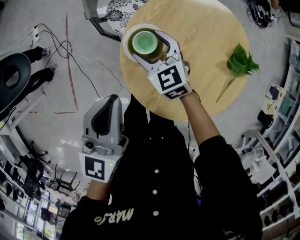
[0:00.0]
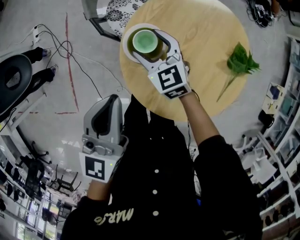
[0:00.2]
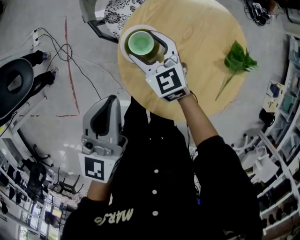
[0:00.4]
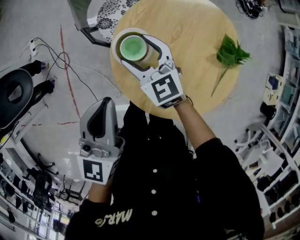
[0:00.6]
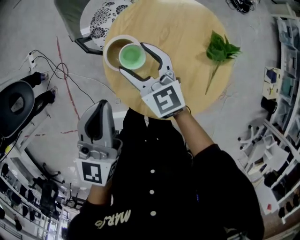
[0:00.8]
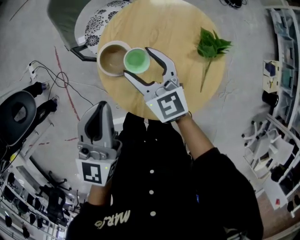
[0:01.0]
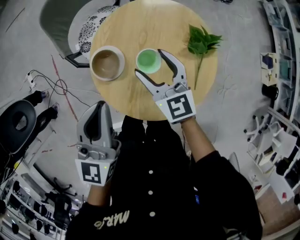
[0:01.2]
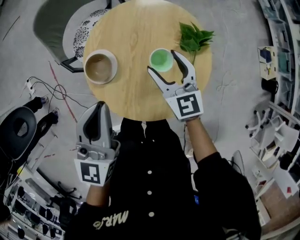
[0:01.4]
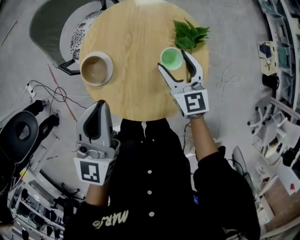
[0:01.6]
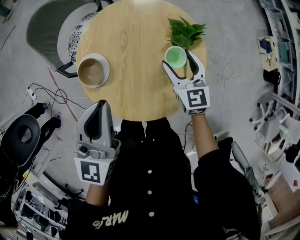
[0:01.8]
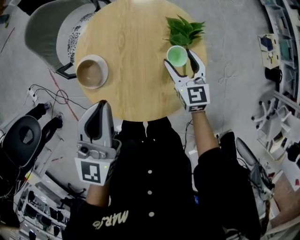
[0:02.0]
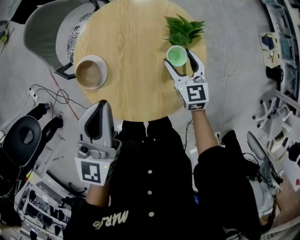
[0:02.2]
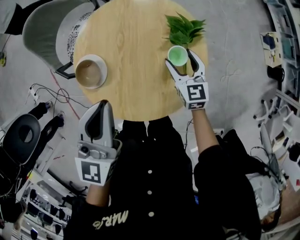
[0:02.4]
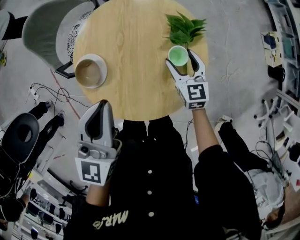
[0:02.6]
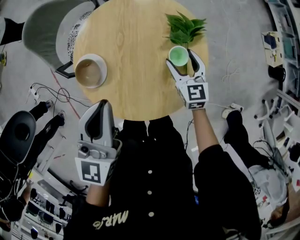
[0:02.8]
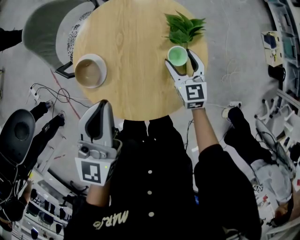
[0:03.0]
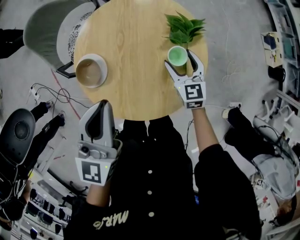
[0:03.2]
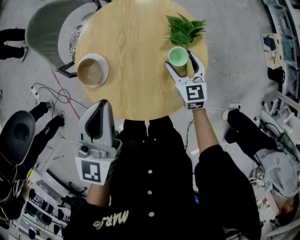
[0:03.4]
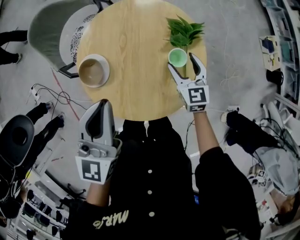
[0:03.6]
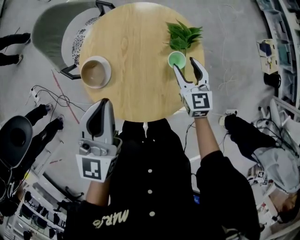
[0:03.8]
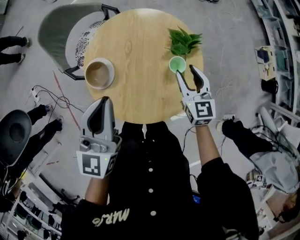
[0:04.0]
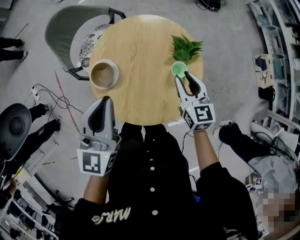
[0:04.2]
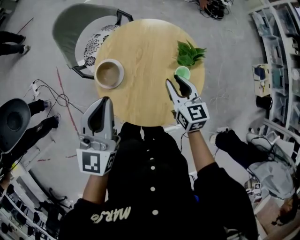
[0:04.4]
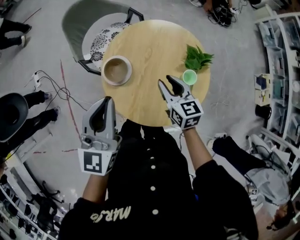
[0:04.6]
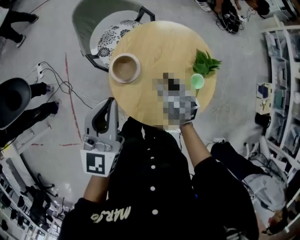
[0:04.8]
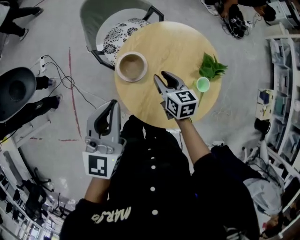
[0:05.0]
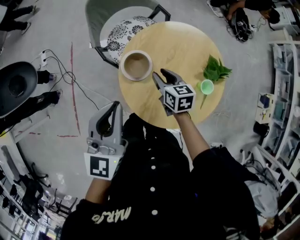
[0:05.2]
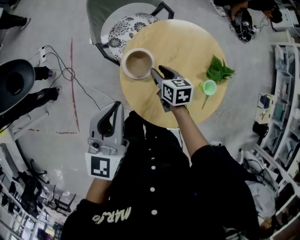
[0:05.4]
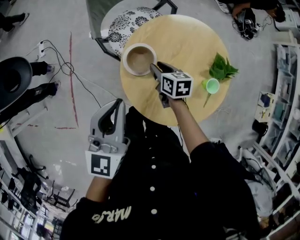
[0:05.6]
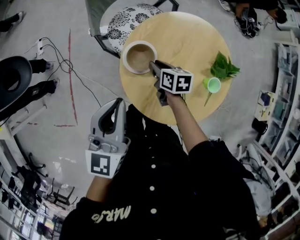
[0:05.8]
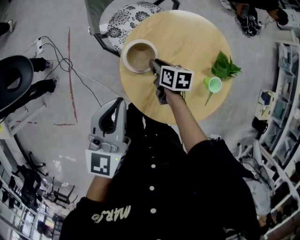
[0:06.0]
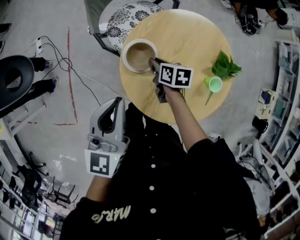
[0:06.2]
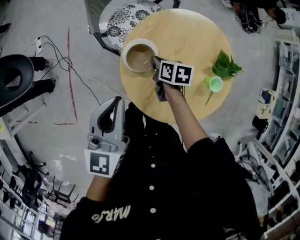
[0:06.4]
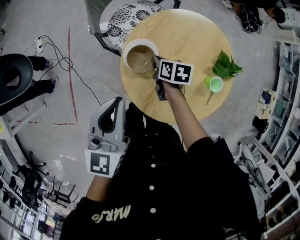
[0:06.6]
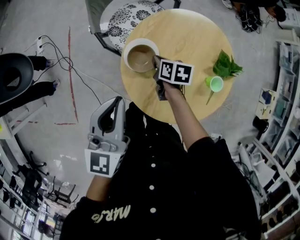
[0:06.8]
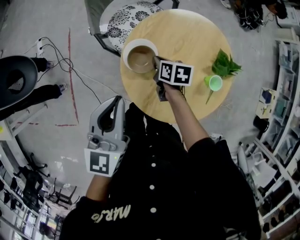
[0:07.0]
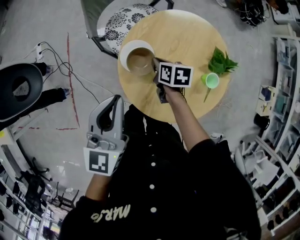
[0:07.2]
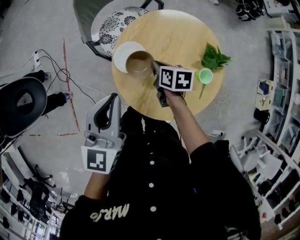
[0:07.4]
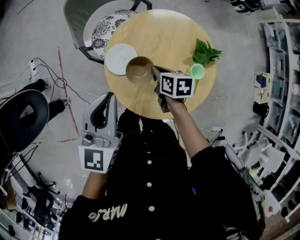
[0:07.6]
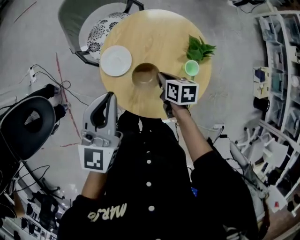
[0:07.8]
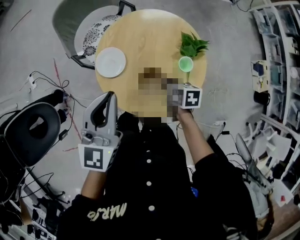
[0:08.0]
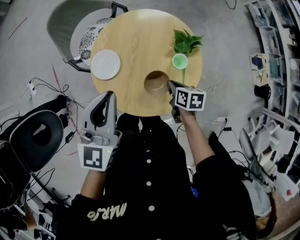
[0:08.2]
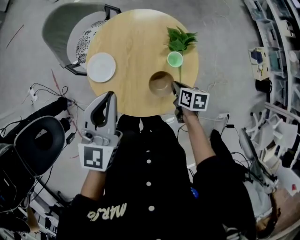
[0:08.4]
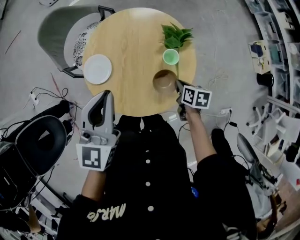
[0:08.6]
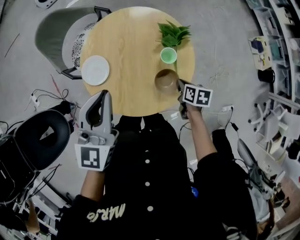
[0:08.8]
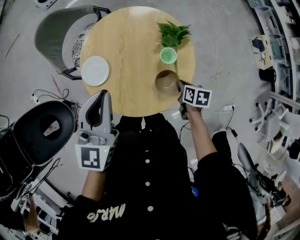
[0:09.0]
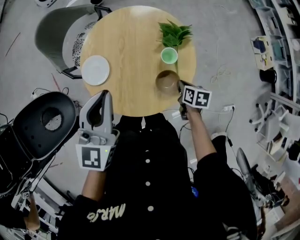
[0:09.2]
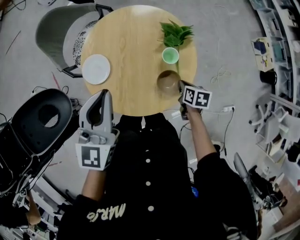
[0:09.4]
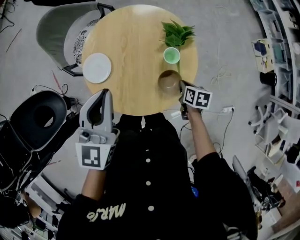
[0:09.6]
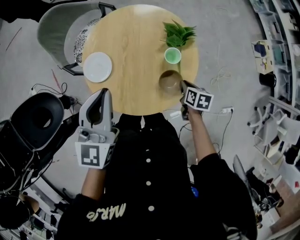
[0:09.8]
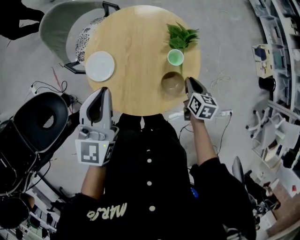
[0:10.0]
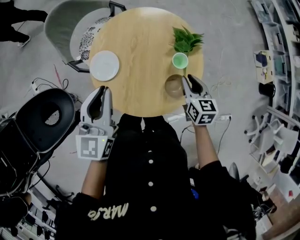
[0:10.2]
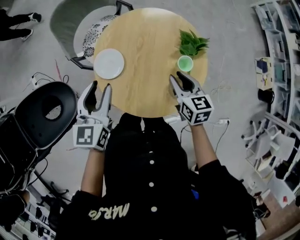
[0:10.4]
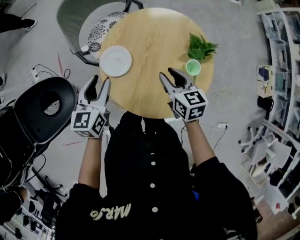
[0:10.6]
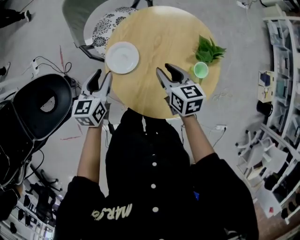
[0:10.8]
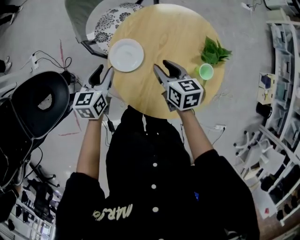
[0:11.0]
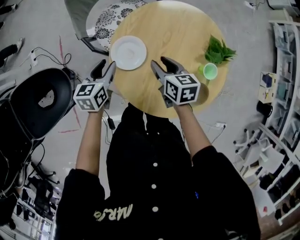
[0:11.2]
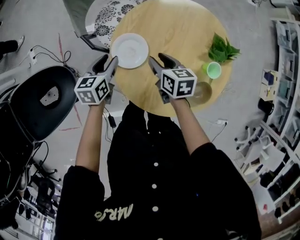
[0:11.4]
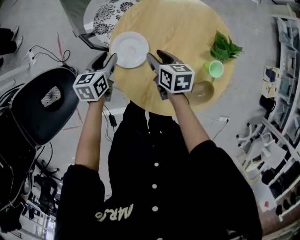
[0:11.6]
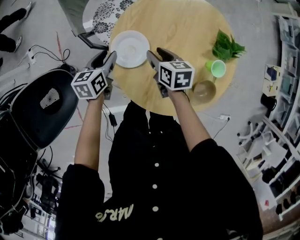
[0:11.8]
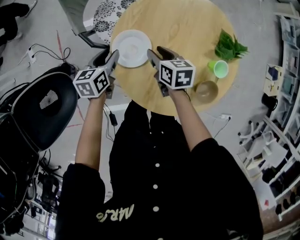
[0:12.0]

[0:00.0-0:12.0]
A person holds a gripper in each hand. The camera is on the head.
0:00.0 to 0:01.6: The right gripper moves roughly 35 cm, and changes its angle by some 40 degrees. Meanwhile the left gripper ends up some 15 cm from where it was.
0:01.6 to 0:03.0: The right gripper goes approximately 10 cm downward and to the right.
0:03.0 to 0:04.4: The right gripper heads upward and to the left, covering about 15 cm, and closes, while the left gripper travels to the left and upward by about 10 cm.
0:04.4 to 0:06.0: The left gripper heads to the left and downward, covering about 15 cm. The right gripper heads to the left, downward and forward, covering some 30 cm, and changes its angle by roughly 40 degrees.
0:06.0 to 0:07.6: The left gripper moves about 5 cm; the right gripper shifts about 10 cm to the right, upward and backward.
0:07.6 to 0:09.0: The left gripper heads to the right, covering about 15 cm, while the right gripper shifts roughly 30 cm to the right and backward, and changes its angle by approximately 30 degrees.
0:09.0 to 0:10.4: The right gripper is displaced to the left, upward and forward by some 20 cm, and changes its angle by about 40 degrees. The left gripper is displaced to the left and downward by approximately 15 cm, turns by roughly 20 degrees, and opens.
0:10.4 to 0:12.0: The right gripper goes roughly 25 cm to the left, downward and forward, and turns by some 20 degrees, while the left gripper heads downward, covering some 25 cm, and changes its angle by roughly 30 degrees.

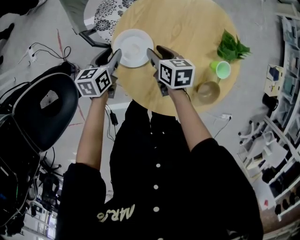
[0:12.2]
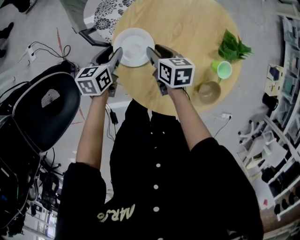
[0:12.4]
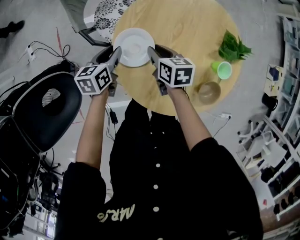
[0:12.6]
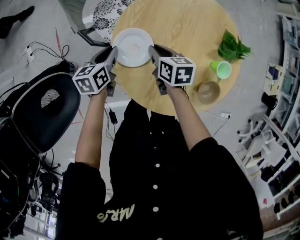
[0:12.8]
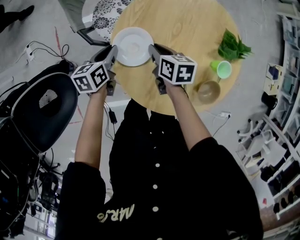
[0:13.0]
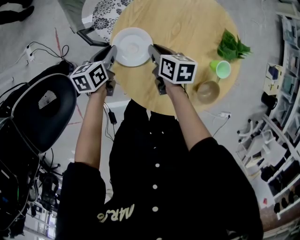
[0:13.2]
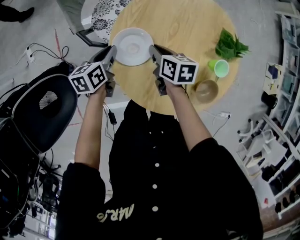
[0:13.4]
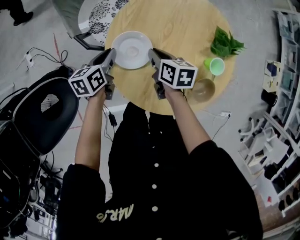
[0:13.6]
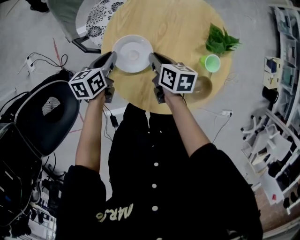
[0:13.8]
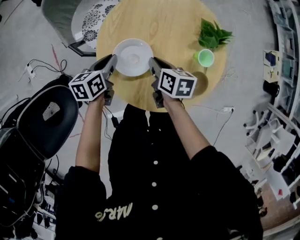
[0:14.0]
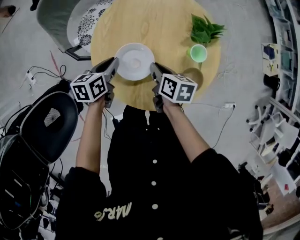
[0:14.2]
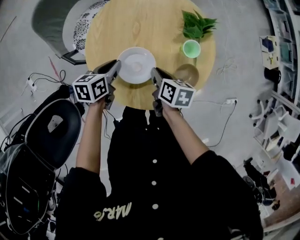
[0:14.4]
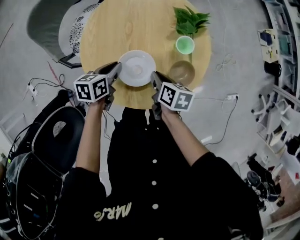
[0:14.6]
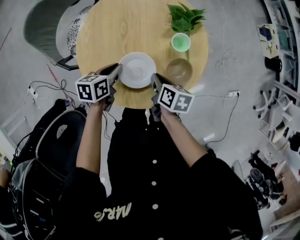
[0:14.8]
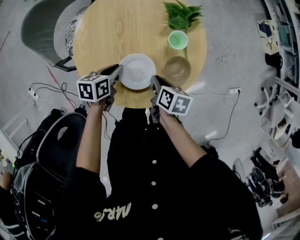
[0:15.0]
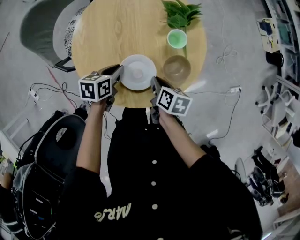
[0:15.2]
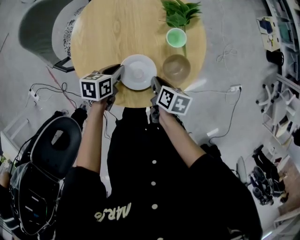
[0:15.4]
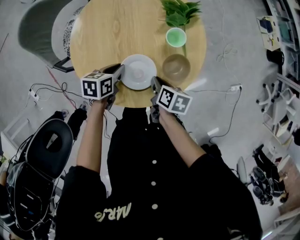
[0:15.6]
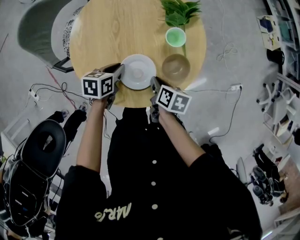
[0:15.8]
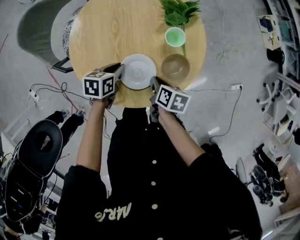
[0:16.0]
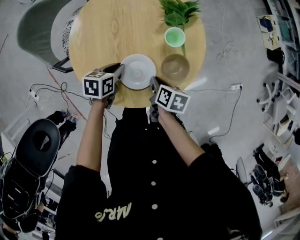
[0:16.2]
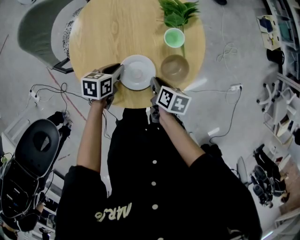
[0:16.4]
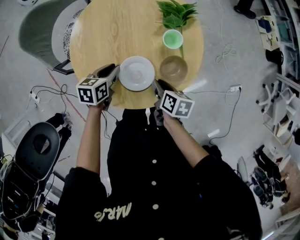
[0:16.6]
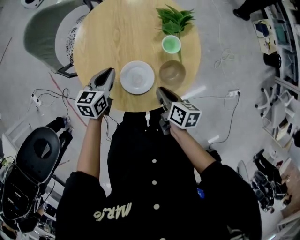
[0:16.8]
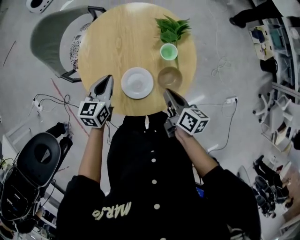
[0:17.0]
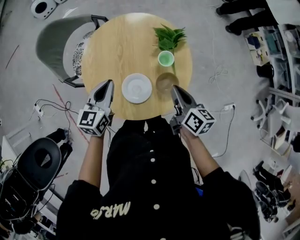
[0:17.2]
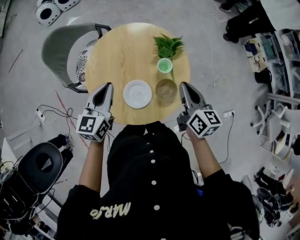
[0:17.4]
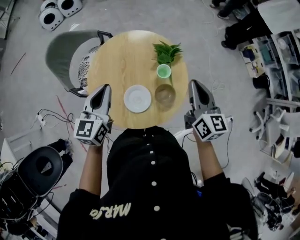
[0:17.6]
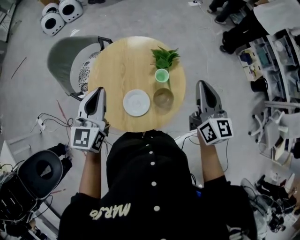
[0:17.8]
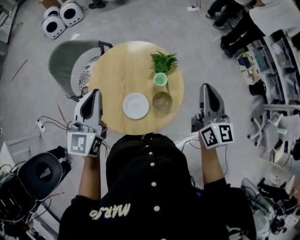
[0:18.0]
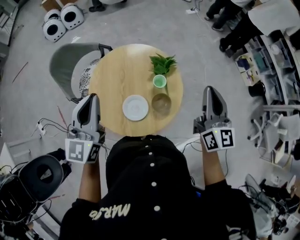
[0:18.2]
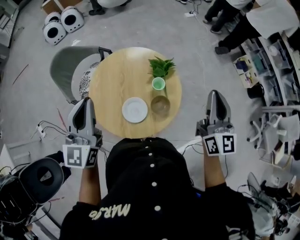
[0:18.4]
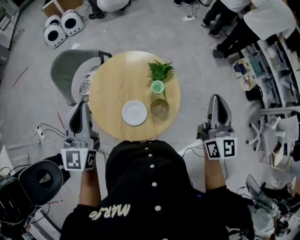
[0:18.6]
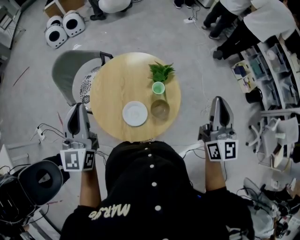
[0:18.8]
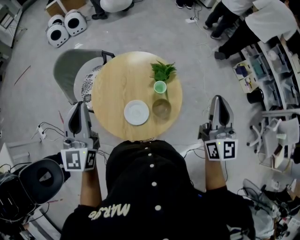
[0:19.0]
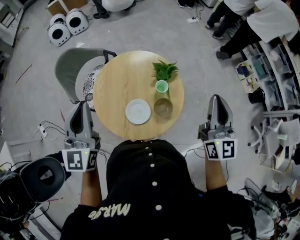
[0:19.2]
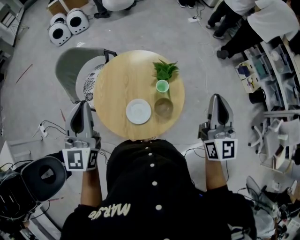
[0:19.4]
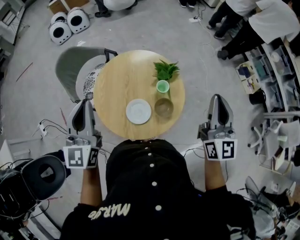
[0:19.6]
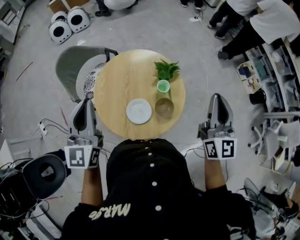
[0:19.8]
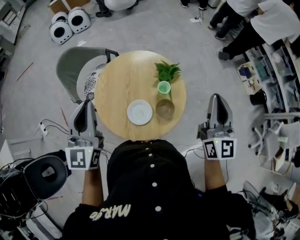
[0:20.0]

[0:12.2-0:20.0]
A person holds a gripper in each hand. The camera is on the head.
0:12.2 to 0:13.8: The left gripper changes place by about 5 cm, and closes its fingers; the right gripper moves approximately 5 cm.
0:13.8 to 0:15.4: The right gripper shifts by some 20 cm, and swivels some 30 degrees, while the left gripper changes place by about 20 cm, and swivels approximately 30 degrees.
0:15.4 to 0:16.8: The right gripper changes place by roughly 5 cm, while the left gripper heads upward, covering approximately 5 cm, and turns by about 20 degrees.
0:16.8 to 0:18.4: The left gripper heads upward, covering approximately 40 cm, and points its fingers roughly 40 degrees further upward. The right gripper heads upward and to the right, covering some 40 cm, and tilts its fingers some 50 degrees upward.
0:18.4 to 0:20.0: The grippers make only small movements.

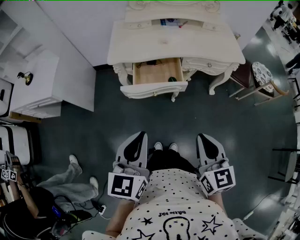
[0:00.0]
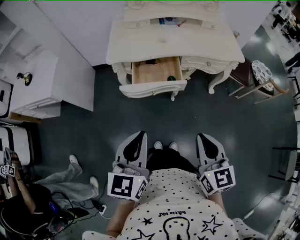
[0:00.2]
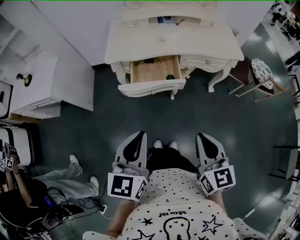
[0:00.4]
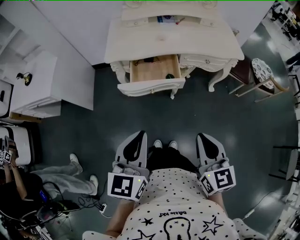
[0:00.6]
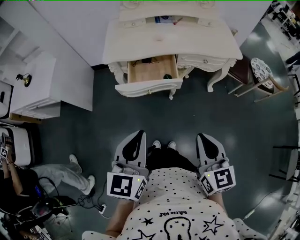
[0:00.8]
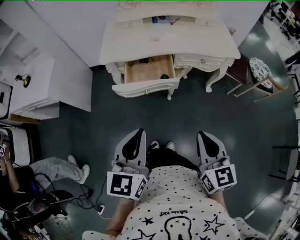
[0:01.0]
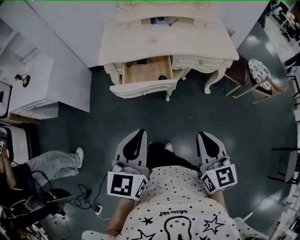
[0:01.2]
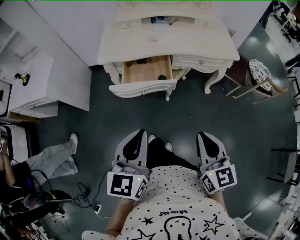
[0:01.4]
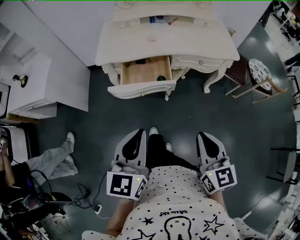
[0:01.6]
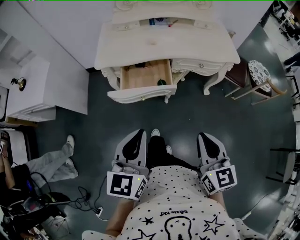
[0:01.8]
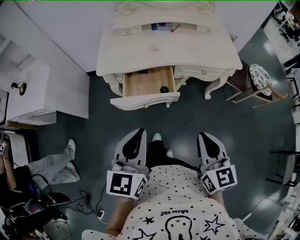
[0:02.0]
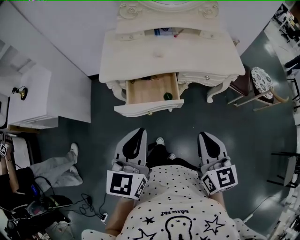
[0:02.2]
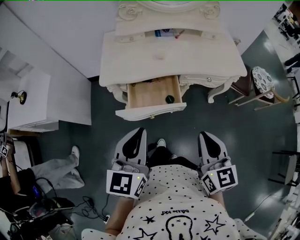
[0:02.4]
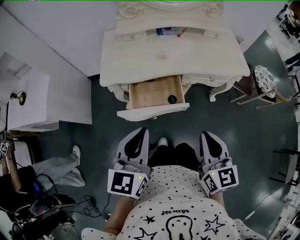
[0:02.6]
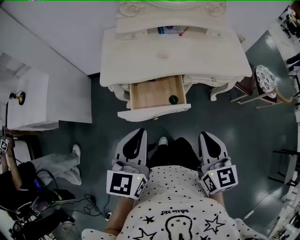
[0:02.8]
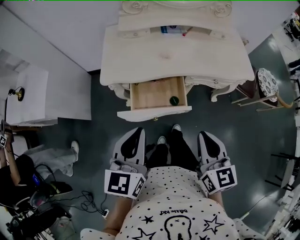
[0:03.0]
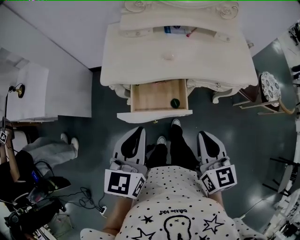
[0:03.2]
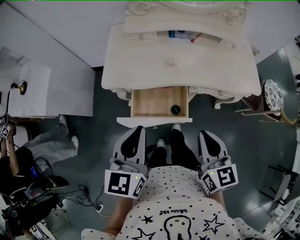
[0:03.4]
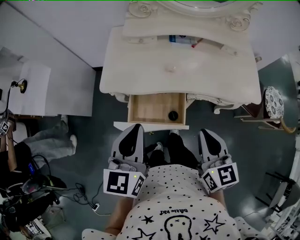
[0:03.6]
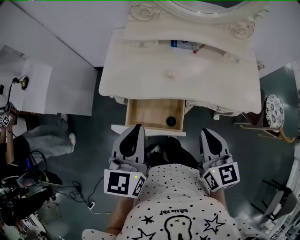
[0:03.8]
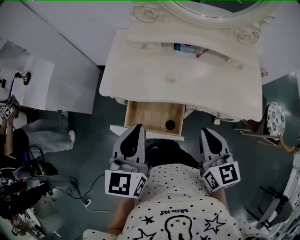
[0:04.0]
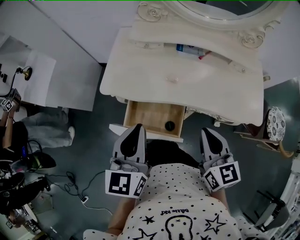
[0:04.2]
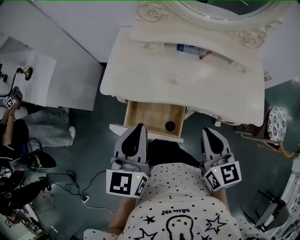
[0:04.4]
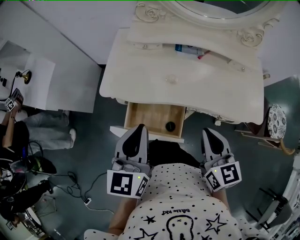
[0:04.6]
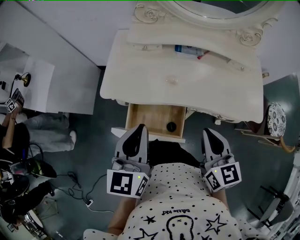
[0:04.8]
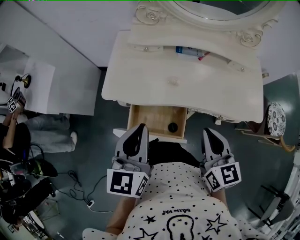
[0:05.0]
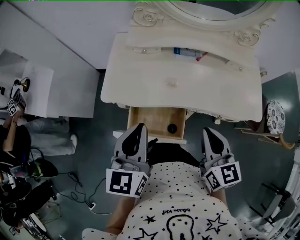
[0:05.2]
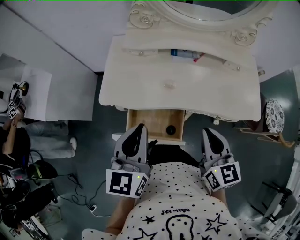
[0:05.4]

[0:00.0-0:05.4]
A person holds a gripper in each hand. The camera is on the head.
0:00.0 to 0:01.4: Both grippers move to the right, approximately 5 cm.
0:01.4 to 0:02.8: The left gripper is displaced forward and to the left by approximately 20 cm, while the right gripper is displaced forward by roughly 15 cm.
0:02.8 to 0:04.0: Both grippers move forward, about 15 cm.
0:04.0 to 0:05.4: The grippers stay close to where they were, moving slightly.
